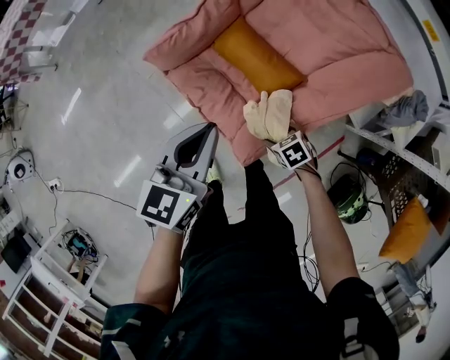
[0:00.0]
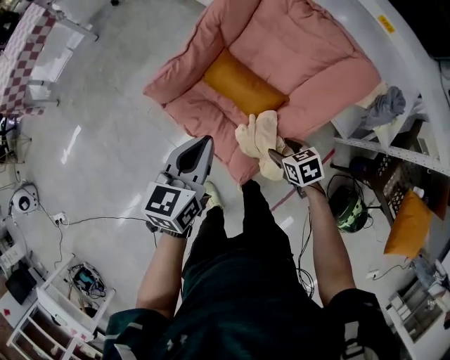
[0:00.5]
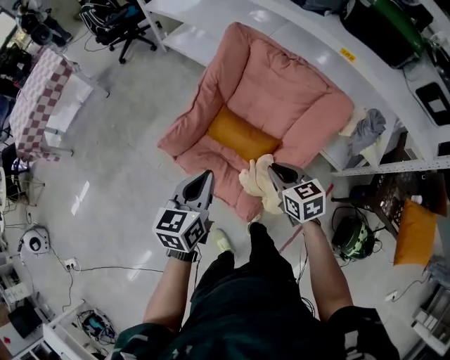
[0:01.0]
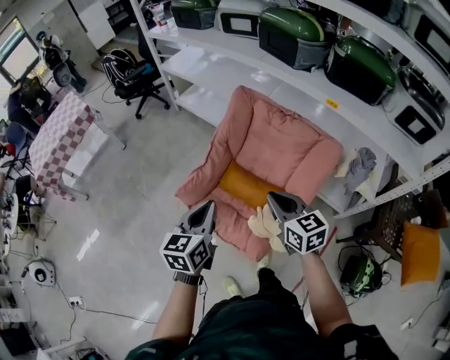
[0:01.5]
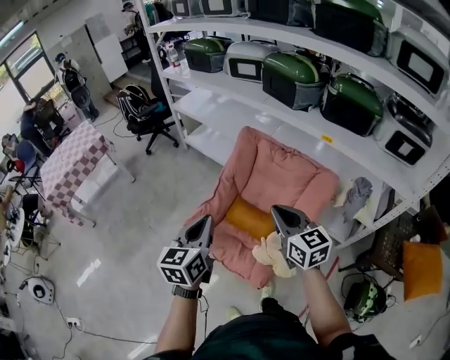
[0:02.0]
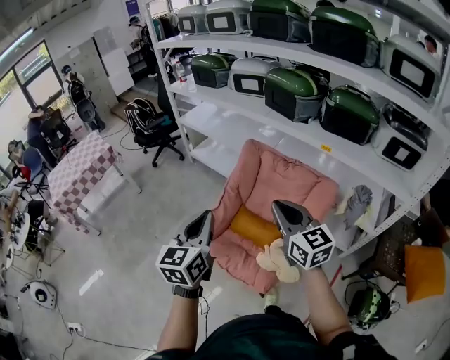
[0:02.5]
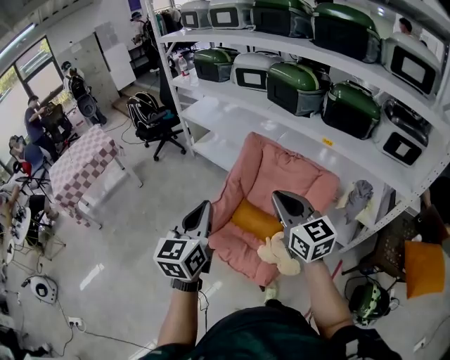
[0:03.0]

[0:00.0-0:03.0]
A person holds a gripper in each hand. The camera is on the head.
0:00.0 to 0:01.5: The right gripper moves upward, about 40 cm, tilts its fingers about 50 degrees upward, and closes, while the left gripper shifts some 15 cm upward.
0:01.5 to 0:03.0: The grippers both shift upward by roughly 20 cm. The right gripper rotates some 20 degrees.

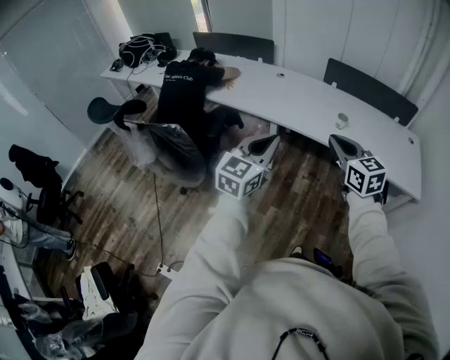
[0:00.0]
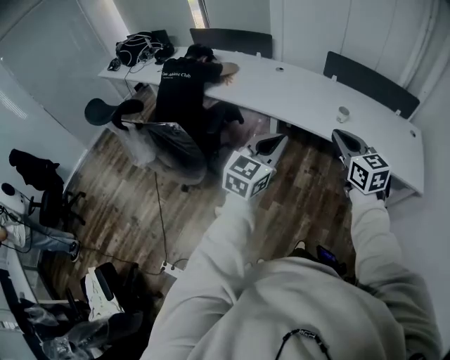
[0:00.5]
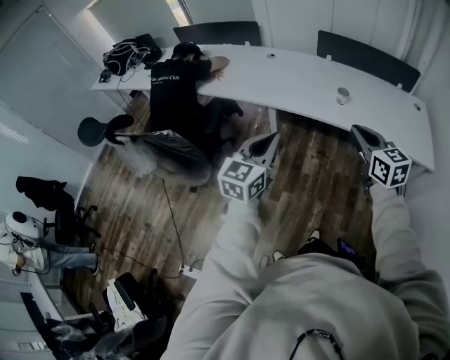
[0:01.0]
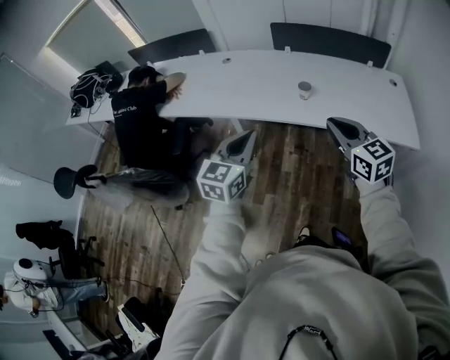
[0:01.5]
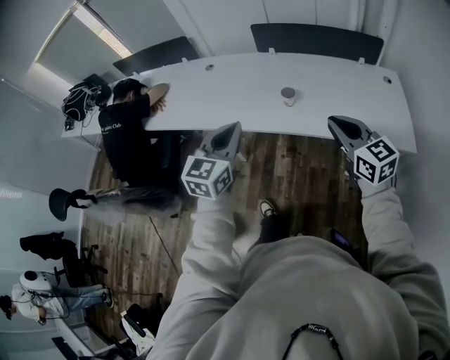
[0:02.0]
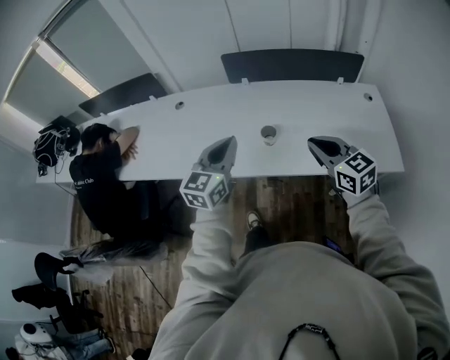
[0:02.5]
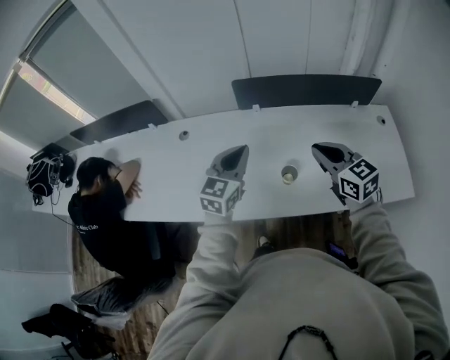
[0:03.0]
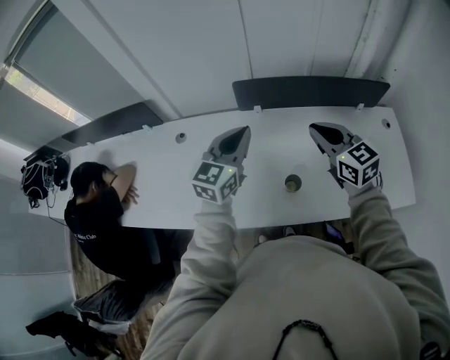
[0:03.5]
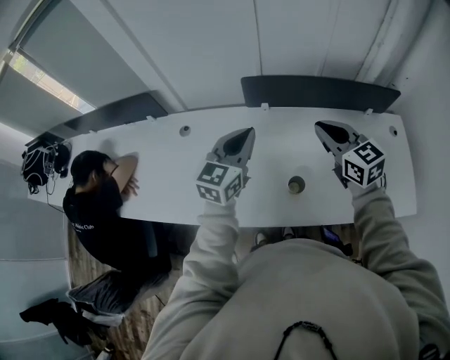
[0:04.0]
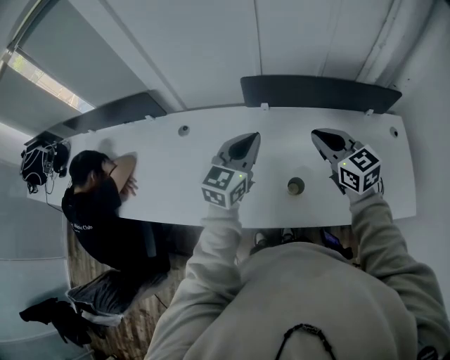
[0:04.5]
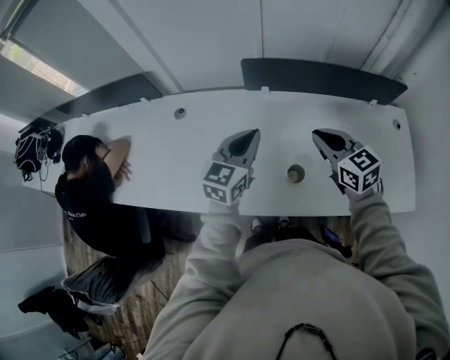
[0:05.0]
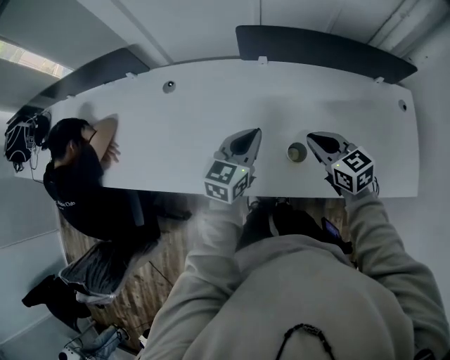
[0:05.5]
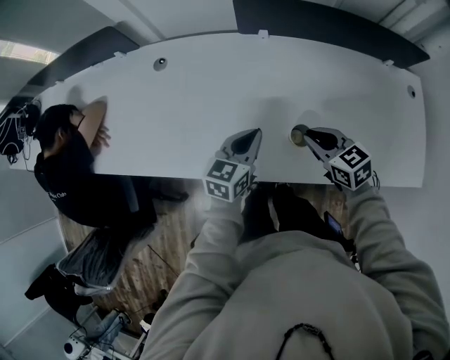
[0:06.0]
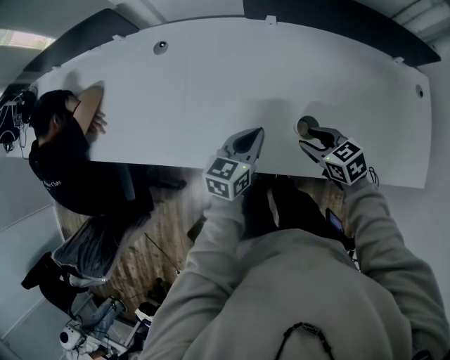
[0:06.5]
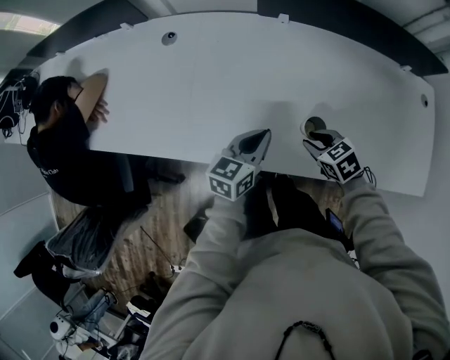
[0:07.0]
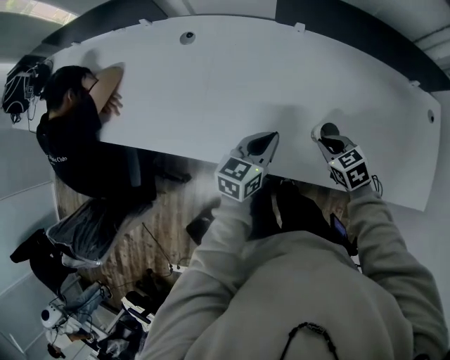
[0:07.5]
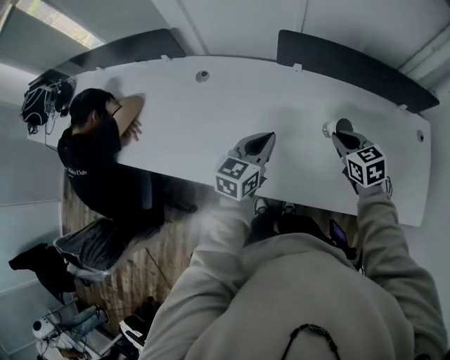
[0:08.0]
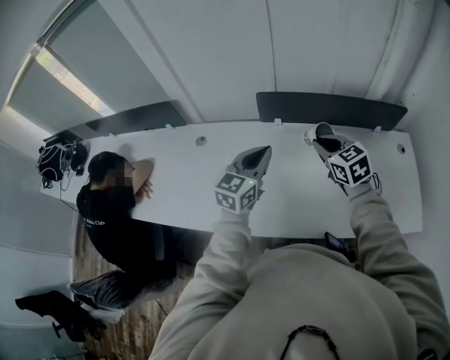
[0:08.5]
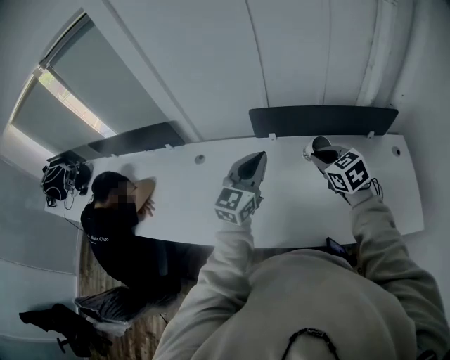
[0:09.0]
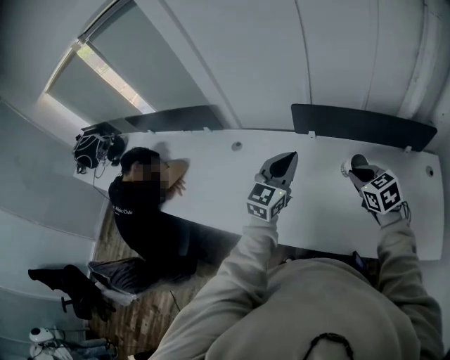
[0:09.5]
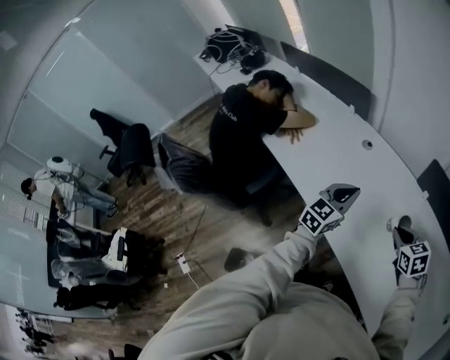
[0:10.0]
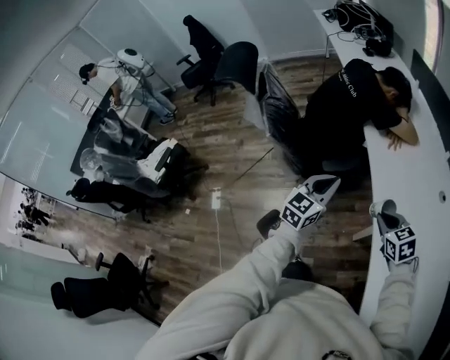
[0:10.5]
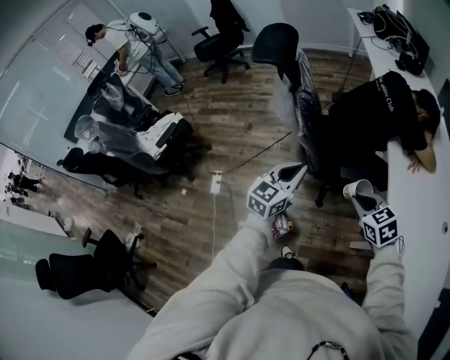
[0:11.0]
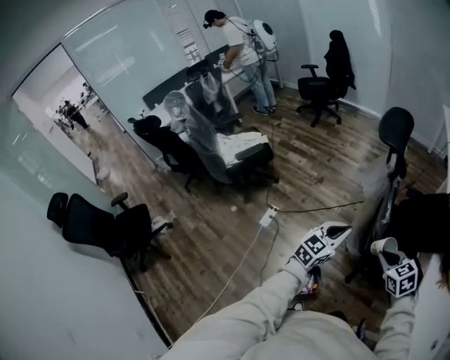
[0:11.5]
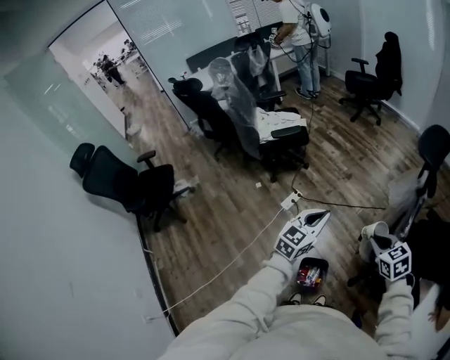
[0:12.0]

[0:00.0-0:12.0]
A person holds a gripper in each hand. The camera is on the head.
0:00.0 to 0:02.0: The left gripper is displaced forward and to the right by approximately 30 cm. The right gripper is displaced to the right and forward by some 30 cm.
0:02.0 to 0:04.0: The two grippers travel together, forward, some 40 cm.
0:04.0 to 0:06.0: Both grippers move downward, about 25 cm. The right gripper turns by approximately 30 degrees; the left gripper rotates some 20 degrees.
0:06.0 to 0:08.0: The left gripper moves upward, some 5 cm. The right gripper heads forward, covering some 5 cm, travels downward and back again, roughly 10 cm each way, and opens, then closes once more.
0:08.0 to 0:10.0: The right gripper goes upward and returns, some 15 cm each way, and swivels approximately 30 degrees; the left gripper moves some 15 cm, and changes its angle by about 30 degrees.
0:10.0 to 0:12.0: Both grippers are carried roughly 90 cm. The right gripper rotates approximately 100 degrees; the left gripper changes its angle by approximately 90 degrees.

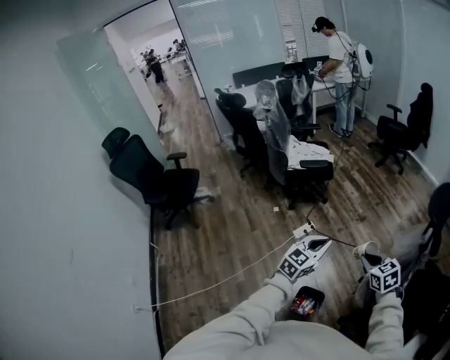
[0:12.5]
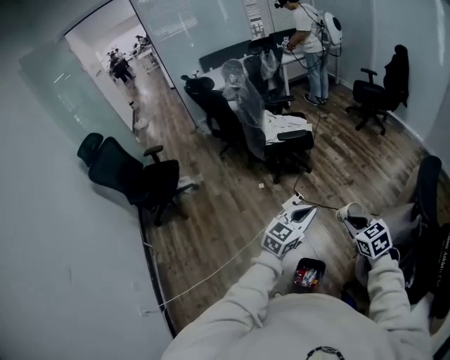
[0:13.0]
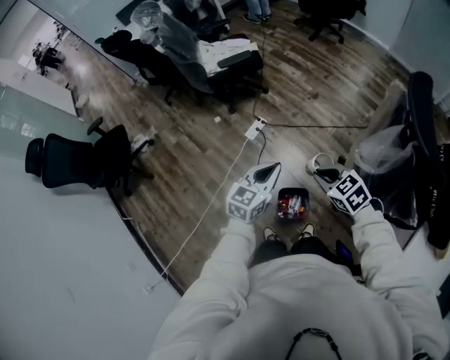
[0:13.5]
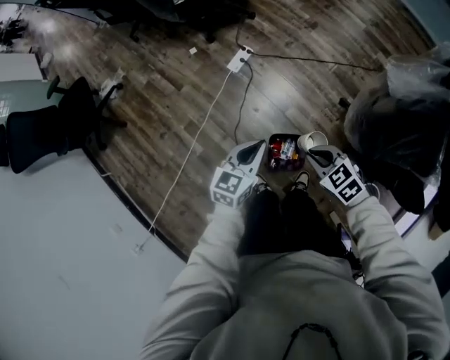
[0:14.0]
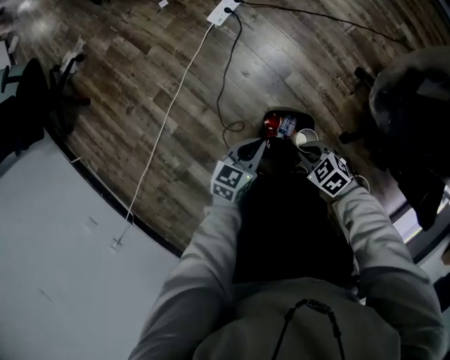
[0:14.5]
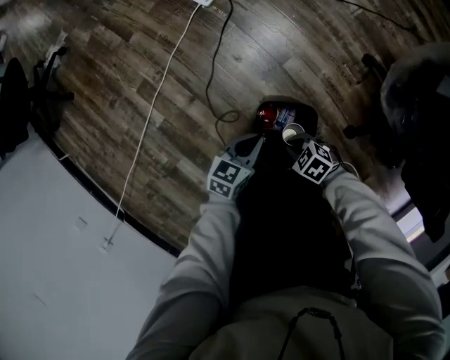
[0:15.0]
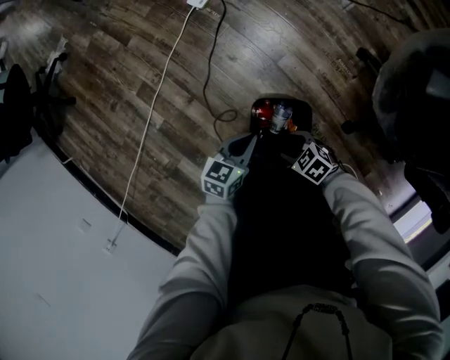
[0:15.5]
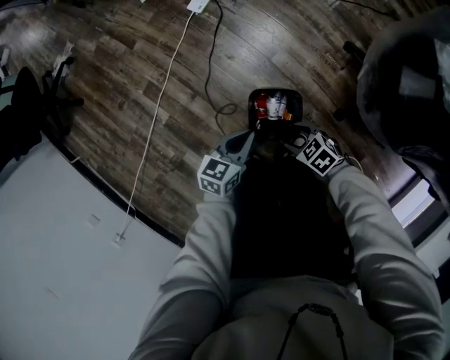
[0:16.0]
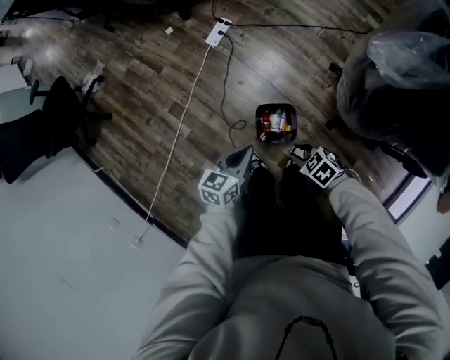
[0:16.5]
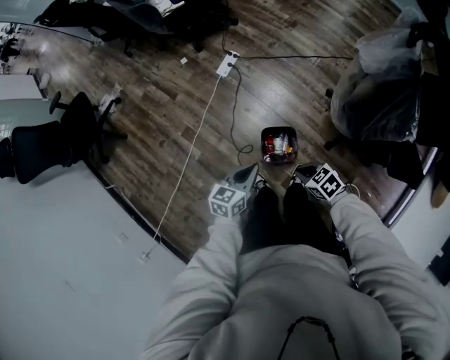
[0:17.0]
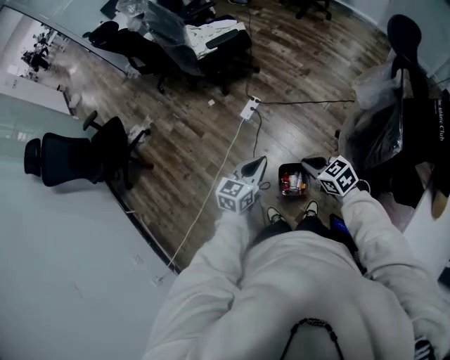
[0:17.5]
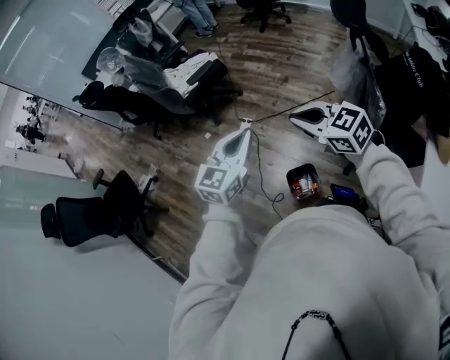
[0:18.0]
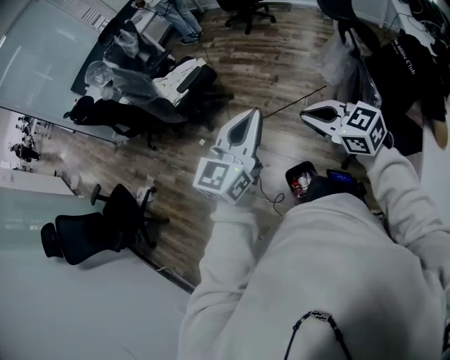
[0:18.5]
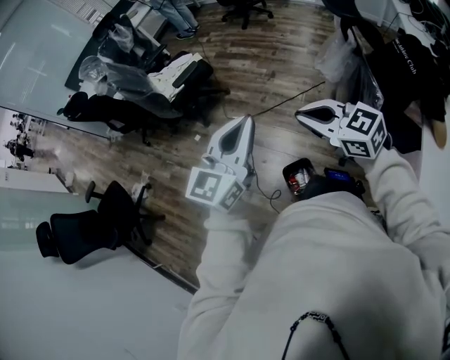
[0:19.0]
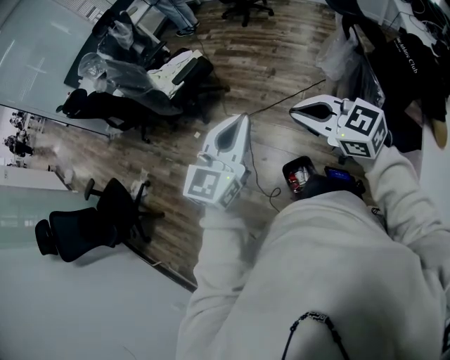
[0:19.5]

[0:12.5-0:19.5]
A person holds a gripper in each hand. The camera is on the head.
0:12.5 to 0:14.5: The grippers both shift downward by about 60 cm. The right gripper changes its angle by some 30 degrees, while the left gripper swivels approximately 30 degrees.
0:14.5 to 0:16.0: The right gripper travels downward and back again, roughly 15 cm each way, and opens up. Meanwhile the left gripper reaches about 10 cm downward, then returns.
0:16.0 to 0:17.5: Both grippers travel together upward, roughly 50 cm. The left gripper changes its angle by about 20 degrees. The right gripper rotates about 30 degrees, and closes its fingers.
0:17.5 to 0:19.5: The grippers both shift upward by roughly 25 cm. The right gripper turns by roughly 30 degrees, while the left gripper swivels about 30 degrees.

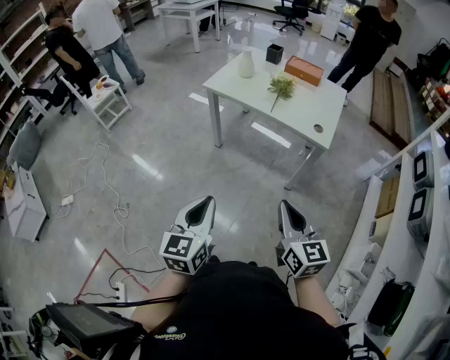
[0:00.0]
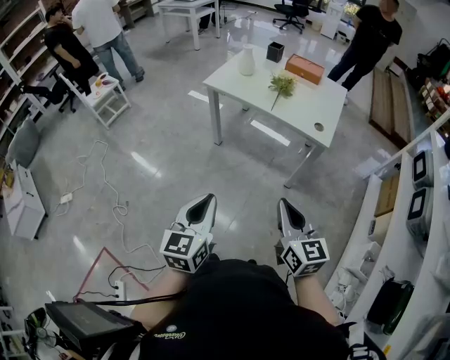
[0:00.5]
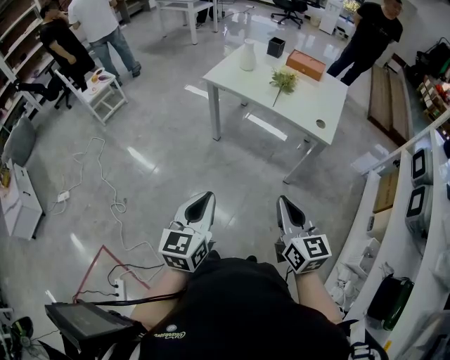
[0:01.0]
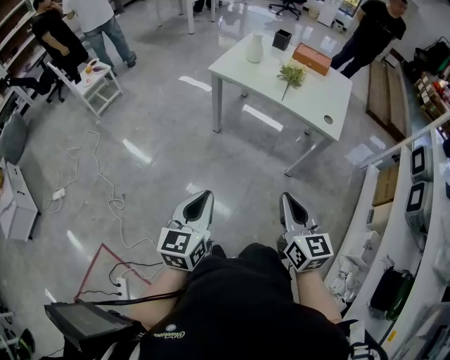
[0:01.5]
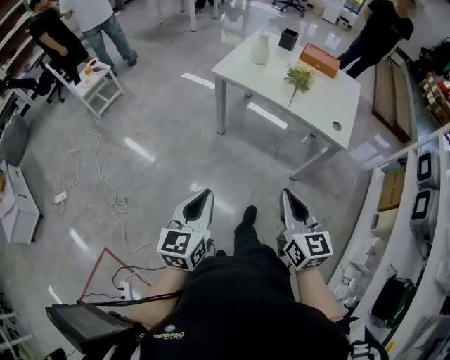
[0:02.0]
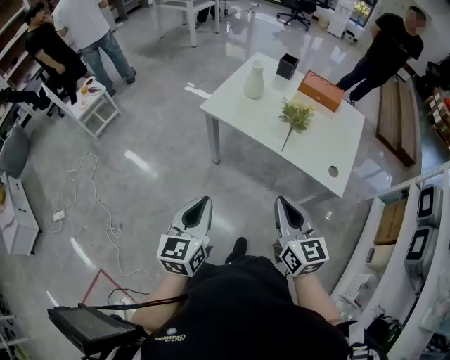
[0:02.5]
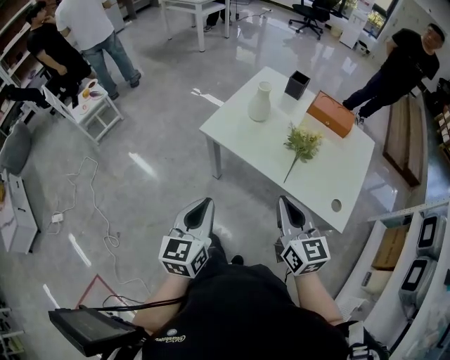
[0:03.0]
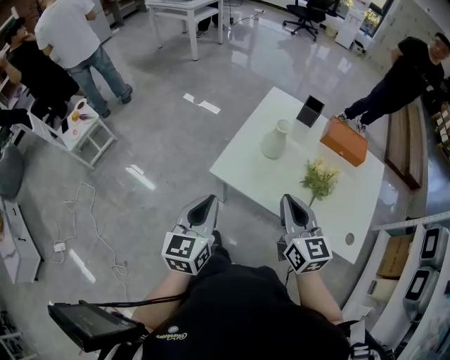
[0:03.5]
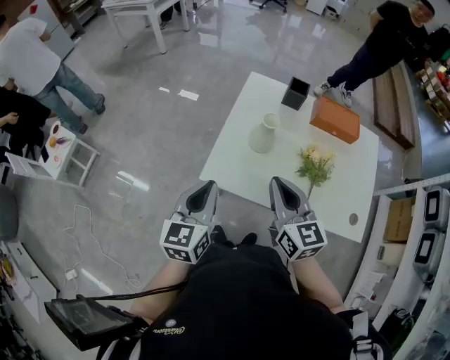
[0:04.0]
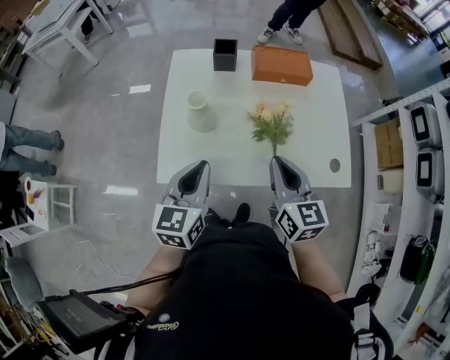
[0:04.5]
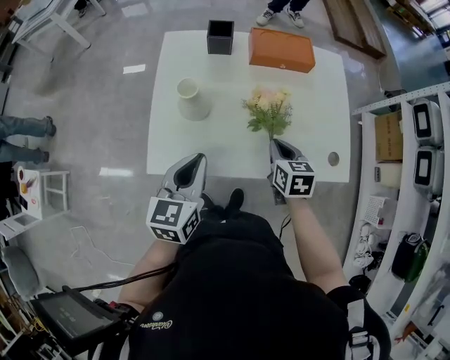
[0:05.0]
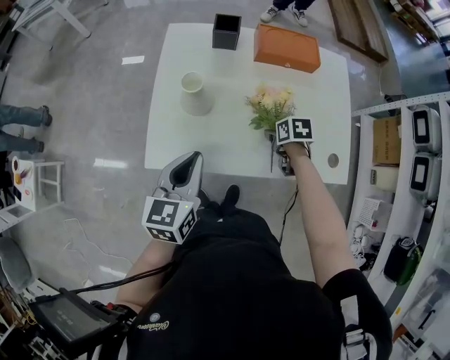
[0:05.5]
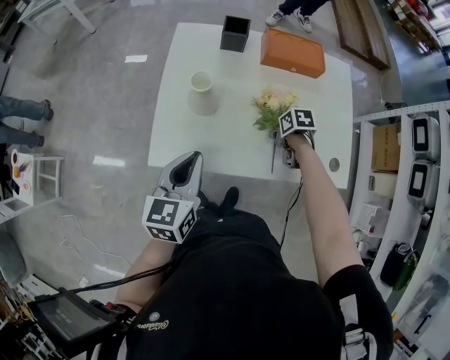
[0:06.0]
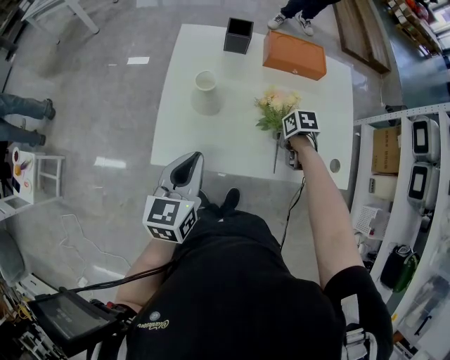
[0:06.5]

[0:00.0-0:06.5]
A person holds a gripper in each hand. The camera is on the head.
0:00.0 to 0:02.0: Both grippers move to the left and forward, approximately 15 cm.
0:02.0 to 0:04.5: The two grippers travel together, about 60 cm. The right gripper changes its angle by about 30 degrees. The left gripper changes its angle by approximately 30 degrees.
0:04.5 to 0:06.5: The right gripper travels downward by approximately 25 cm, points its fingers some 50 degrees further downward, and opens, then closes again.
